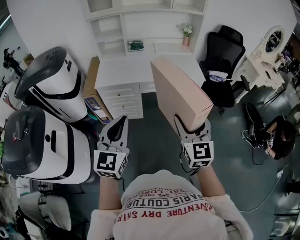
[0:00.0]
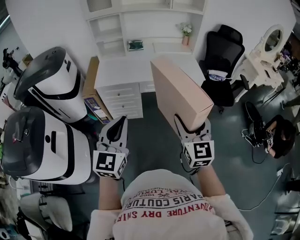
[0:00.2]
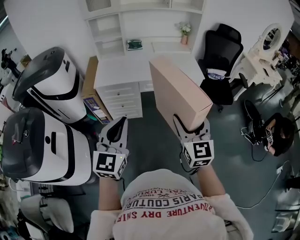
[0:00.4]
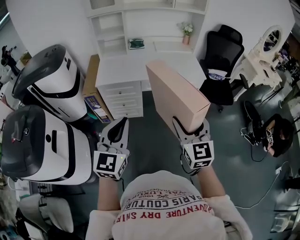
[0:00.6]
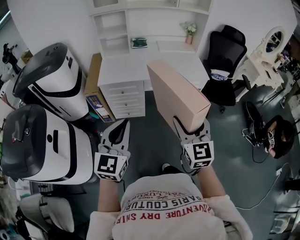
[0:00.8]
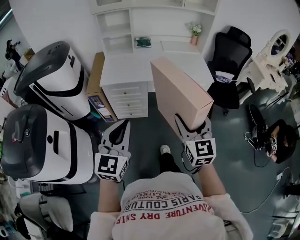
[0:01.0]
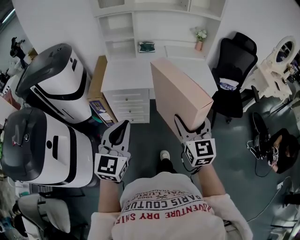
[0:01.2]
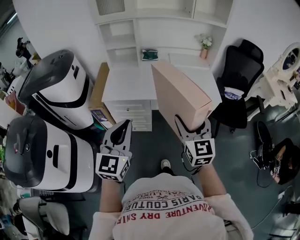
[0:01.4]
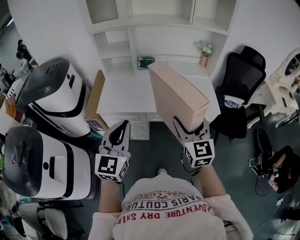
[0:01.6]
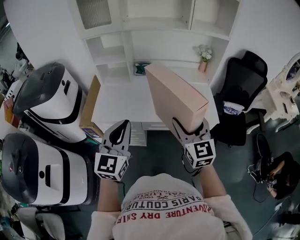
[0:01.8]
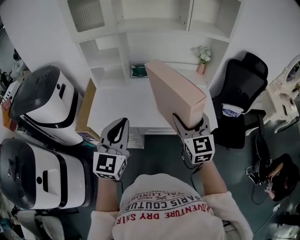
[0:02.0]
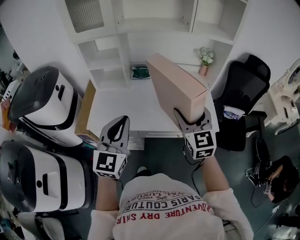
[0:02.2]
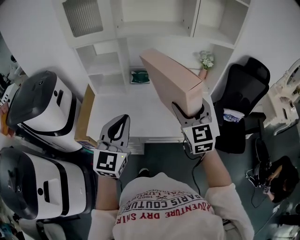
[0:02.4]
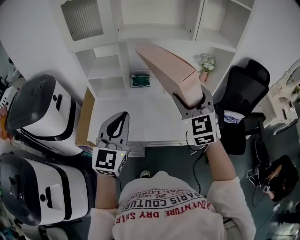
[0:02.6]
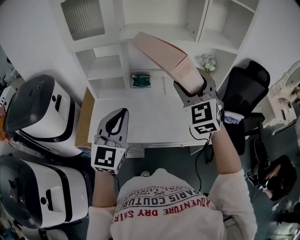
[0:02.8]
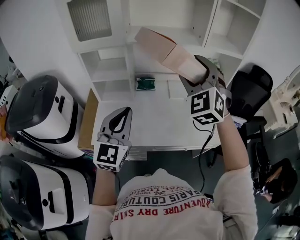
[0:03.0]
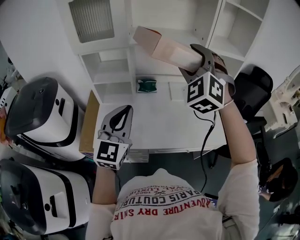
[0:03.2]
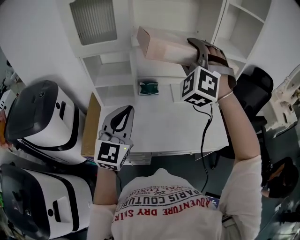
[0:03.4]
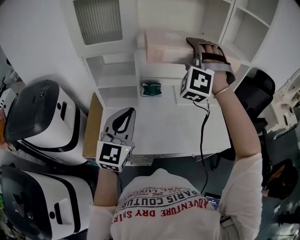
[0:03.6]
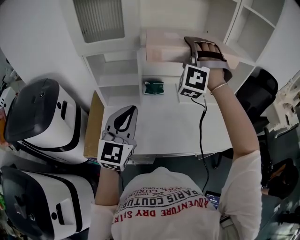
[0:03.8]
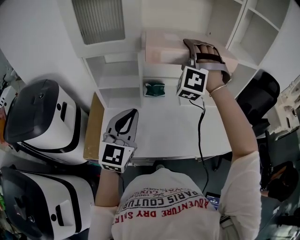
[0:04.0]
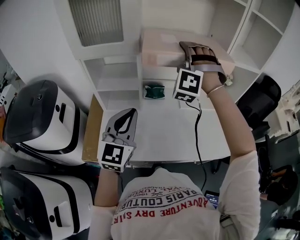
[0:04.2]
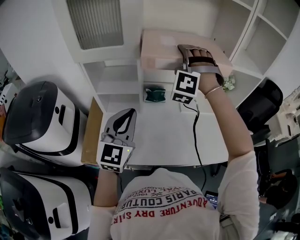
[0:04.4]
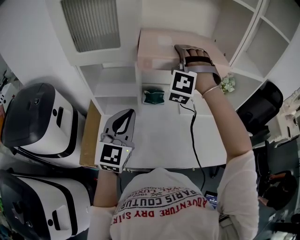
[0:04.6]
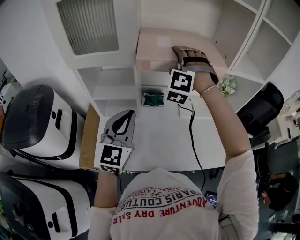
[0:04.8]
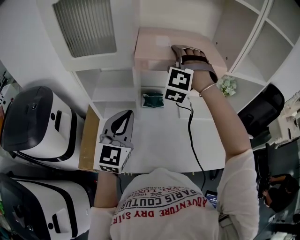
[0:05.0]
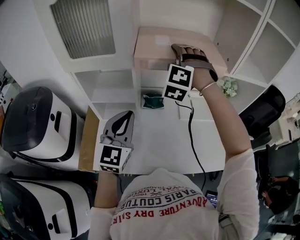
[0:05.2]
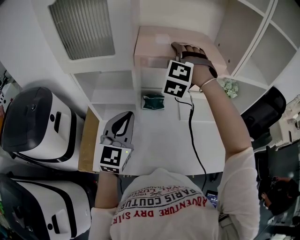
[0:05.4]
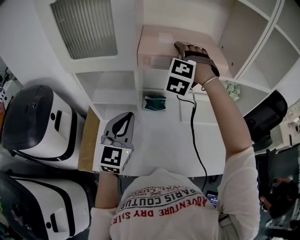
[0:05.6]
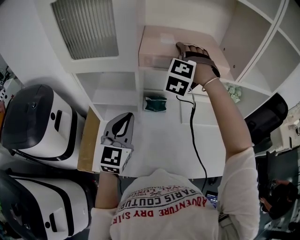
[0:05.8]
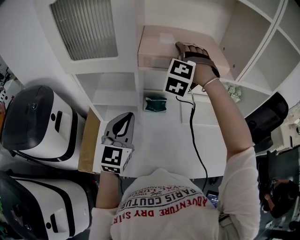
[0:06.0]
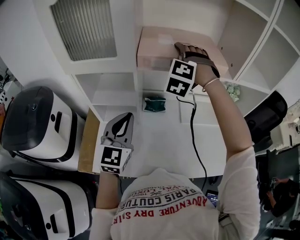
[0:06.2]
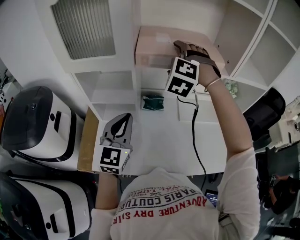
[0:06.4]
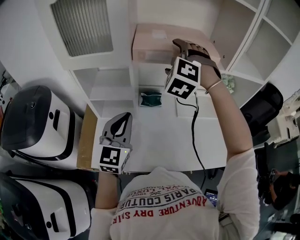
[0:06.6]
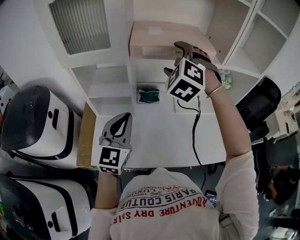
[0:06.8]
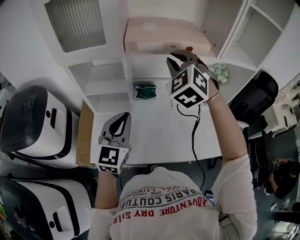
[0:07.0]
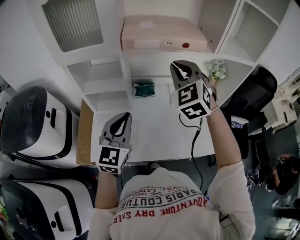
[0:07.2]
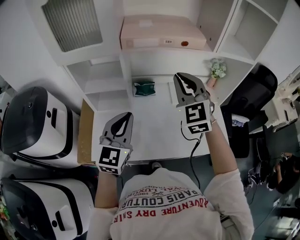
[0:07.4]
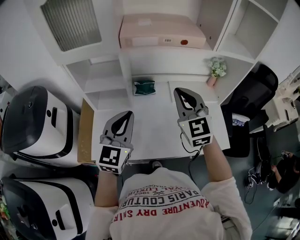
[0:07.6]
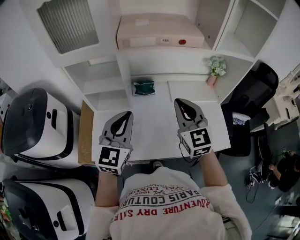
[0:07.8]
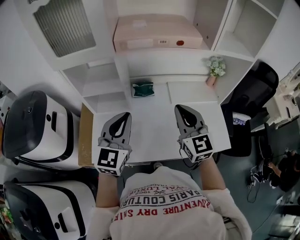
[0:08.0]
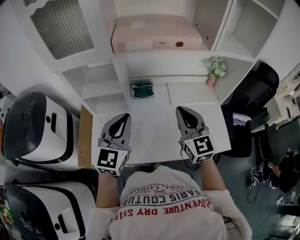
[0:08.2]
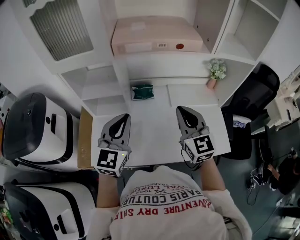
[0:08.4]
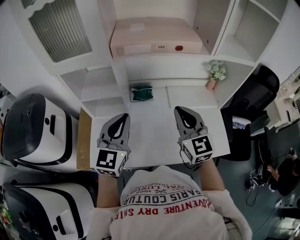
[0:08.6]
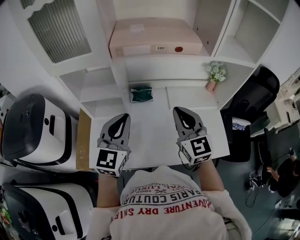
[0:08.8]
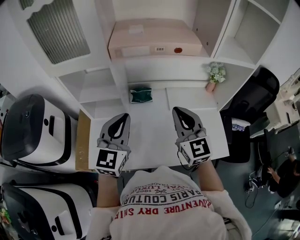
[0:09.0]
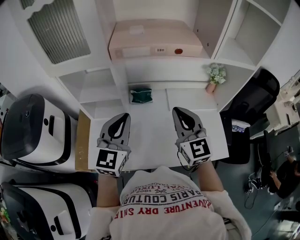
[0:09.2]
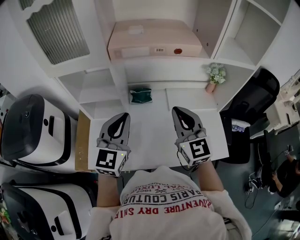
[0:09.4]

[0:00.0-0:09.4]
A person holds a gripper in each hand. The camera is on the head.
0:00.0 to 0:01.6: The two grippers go roughly 25 cm forward.
0:01.6 to 0:03.2: The right gripper goes roughly 40 cm forward and upward, and twists about 60 degrees counterclockwise, seen from behind. Meanwhile the left gripper travels forward by some 25 cm.
0:03.2 to 0:04.8: The right gripper travels forward, to the left and downward by roughly 25 cm, and rotates some 30 degrees. The left gripper travels forward and to the left by approximately 15 cm.
0:04.8 to 0:06.2: The grippers make only small movements.
0:06.2 to 0:07.8: The left gripper travels backward and to the right by about 10 cm. Meanwhile the right gripper travels backward and to the right by about 25 cm, rotates around the line of its fingers by approximately 60 degrees, clockwise from behind, and closes its fingers.
0:07.8 to 0:09.4: There are only small adjustments of the grippers.

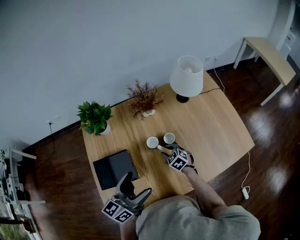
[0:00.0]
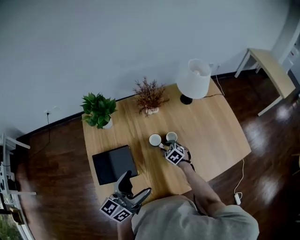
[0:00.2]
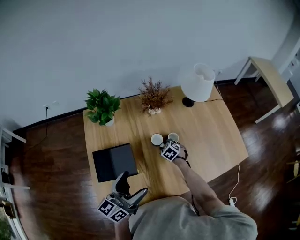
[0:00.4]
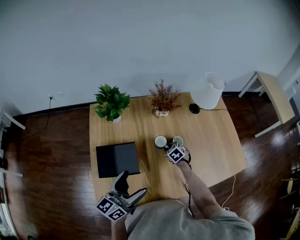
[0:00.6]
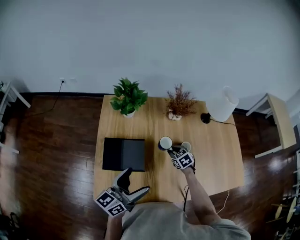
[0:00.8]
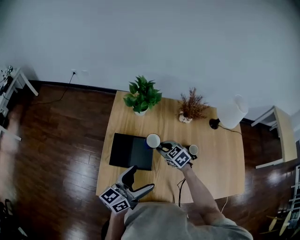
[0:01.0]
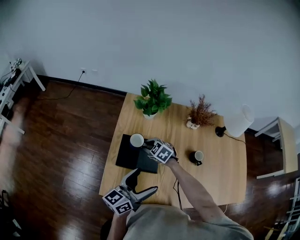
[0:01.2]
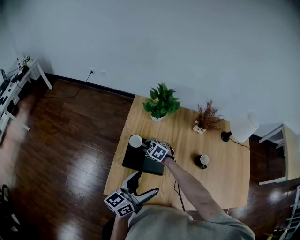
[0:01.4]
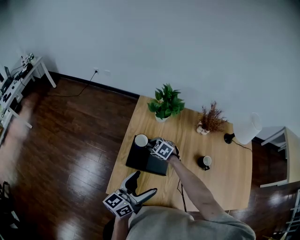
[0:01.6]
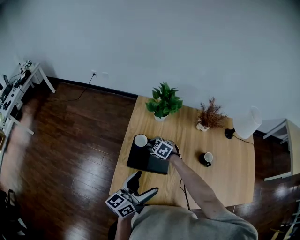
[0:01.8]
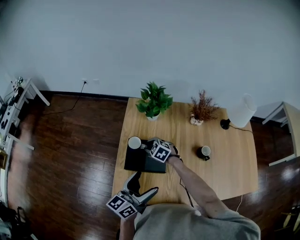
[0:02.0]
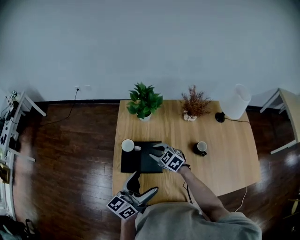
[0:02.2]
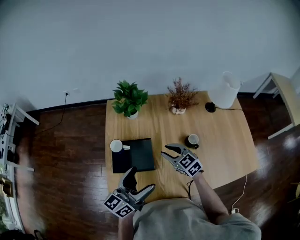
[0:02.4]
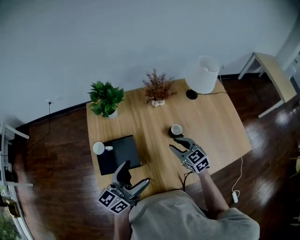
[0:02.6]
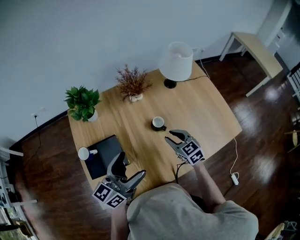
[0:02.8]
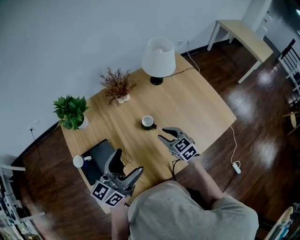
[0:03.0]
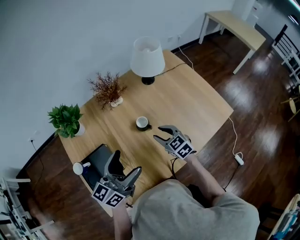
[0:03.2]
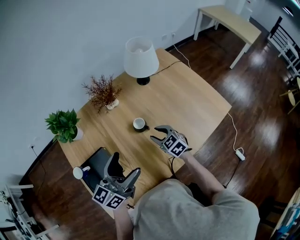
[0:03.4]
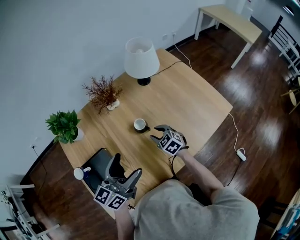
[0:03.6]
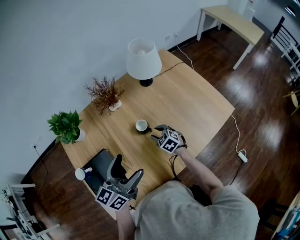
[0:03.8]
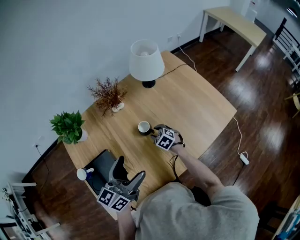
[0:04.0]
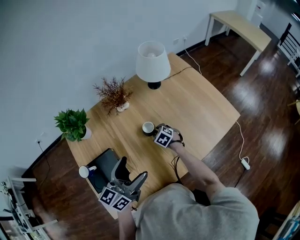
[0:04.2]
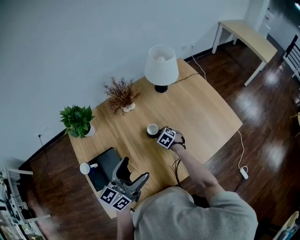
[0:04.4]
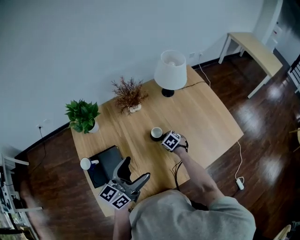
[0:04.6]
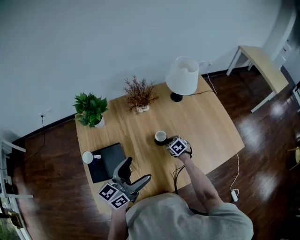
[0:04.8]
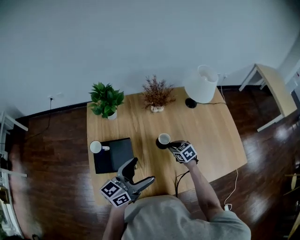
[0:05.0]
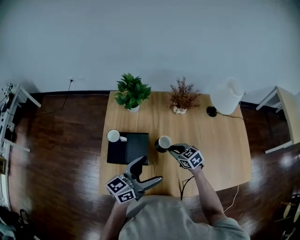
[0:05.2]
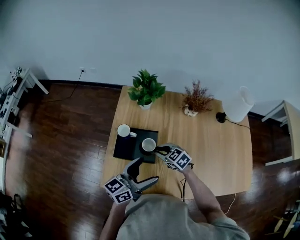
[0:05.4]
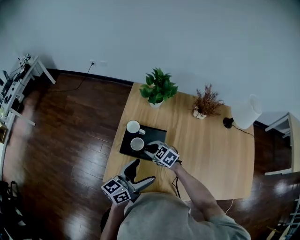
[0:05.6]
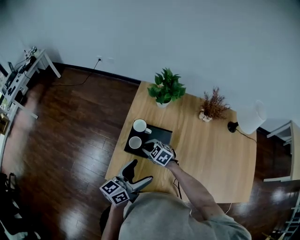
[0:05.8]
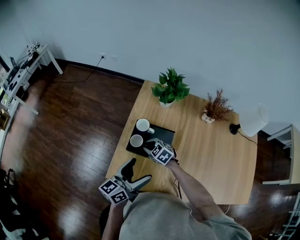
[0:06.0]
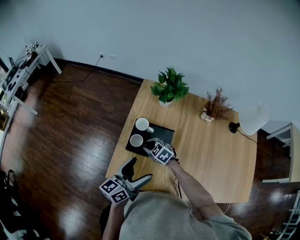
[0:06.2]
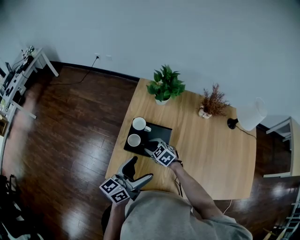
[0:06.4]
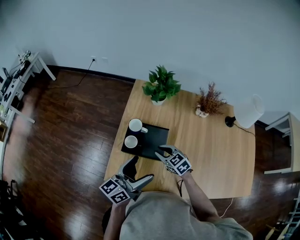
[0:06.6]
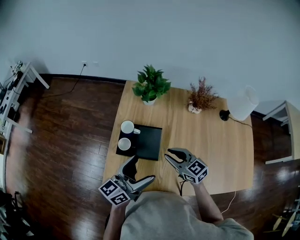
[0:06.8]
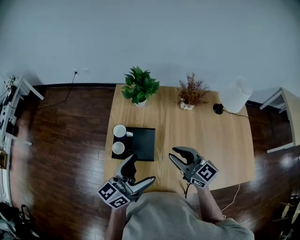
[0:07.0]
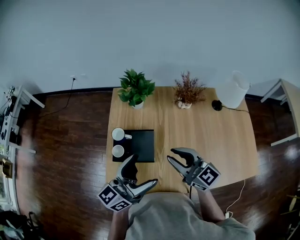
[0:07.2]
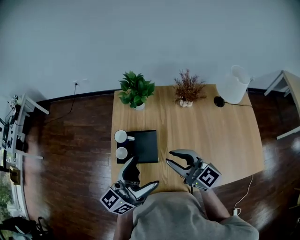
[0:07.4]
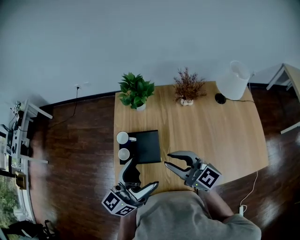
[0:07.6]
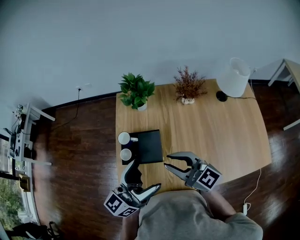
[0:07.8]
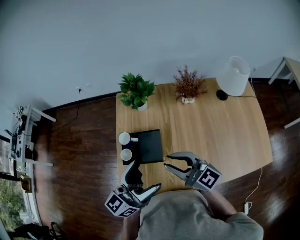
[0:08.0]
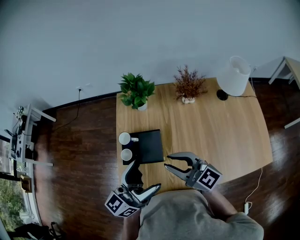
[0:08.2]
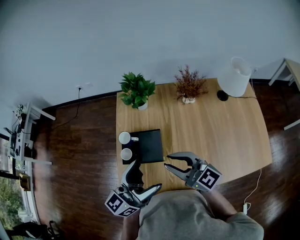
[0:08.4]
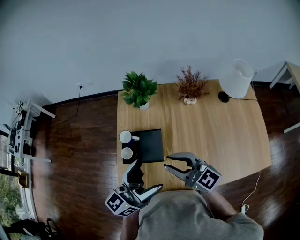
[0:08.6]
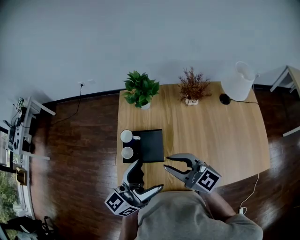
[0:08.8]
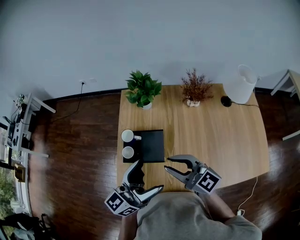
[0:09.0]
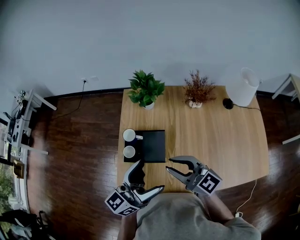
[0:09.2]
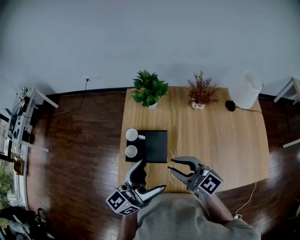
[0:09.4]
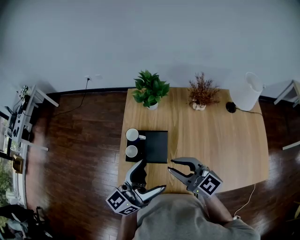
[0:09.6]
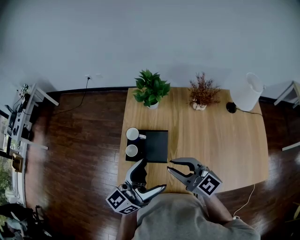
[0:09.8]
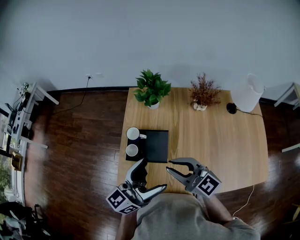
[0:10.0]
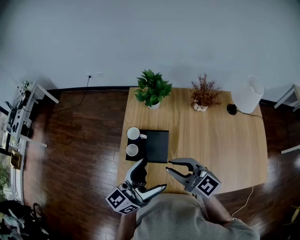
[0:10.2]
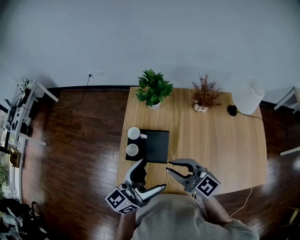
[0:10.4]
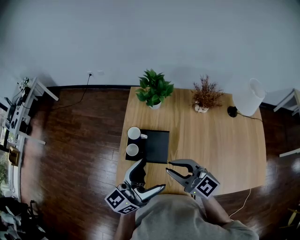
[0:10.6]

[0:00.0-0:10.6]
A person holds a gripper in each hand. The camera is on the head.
0:00.0 to 0:01.6: The left gripper ends up about 20 cm from where it was, and swivels some 20 degrees, while the right gripper goes up and down, approximately 10 cm each way, reversing 2 times, and changes its angle by roughly 40 degrees.
0:01.6 to 0:03.0: The left gripper shifts by roughly 25 cm, and swivels some 40 degrees; the right gripper changes place by some 40 cm, and rotates some 60 degrees.
0:03.0 to 0:04.6: The right gripper heads downward and forward, covering approximately 20 cm, and rotates some 30 degrees.
0:04.6 to 0:06.0: The right gripper moves some 50 cm, and swivels about 60 degrees. The left gripper changes place by roughly 25 cm, and changes its angle by roughly 40 degrees.
0:06.0 to 0:07.6: The right gripper moves upward and to the right, about 30 cm, and points its fingers roughly 50 degrees further upward. Meanwhile the left gripper shifts some 15 cm upward and to the right, and swivels about 20 degrees.
0:07.6 to 0:10.6: The grippers make only small movements.

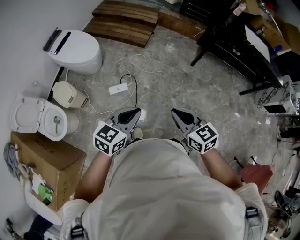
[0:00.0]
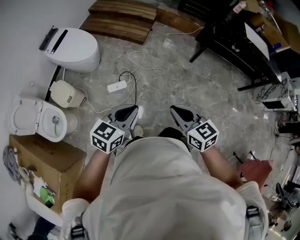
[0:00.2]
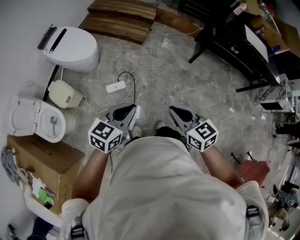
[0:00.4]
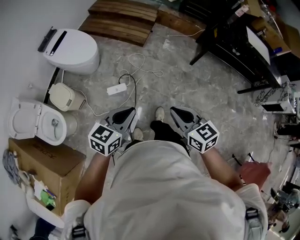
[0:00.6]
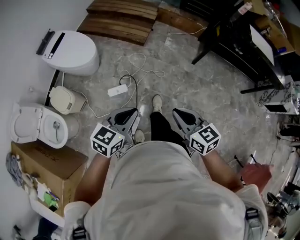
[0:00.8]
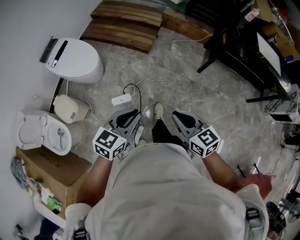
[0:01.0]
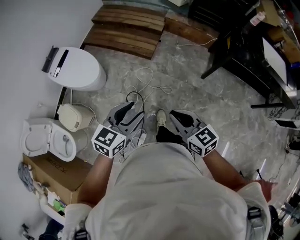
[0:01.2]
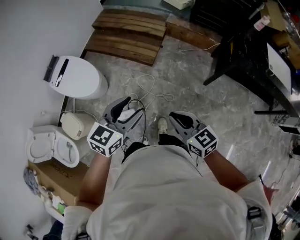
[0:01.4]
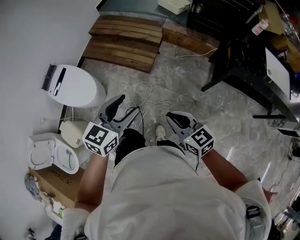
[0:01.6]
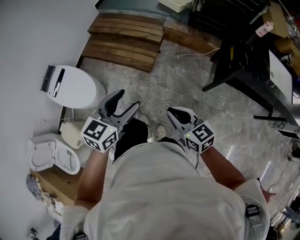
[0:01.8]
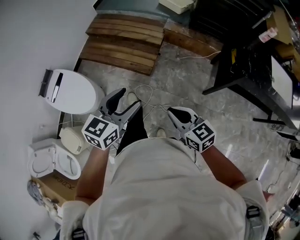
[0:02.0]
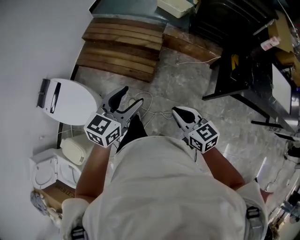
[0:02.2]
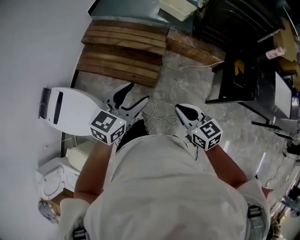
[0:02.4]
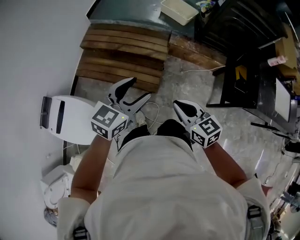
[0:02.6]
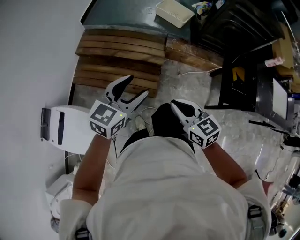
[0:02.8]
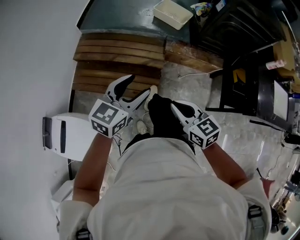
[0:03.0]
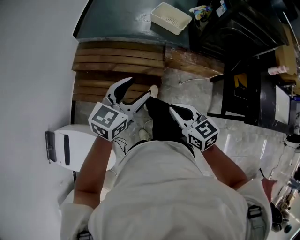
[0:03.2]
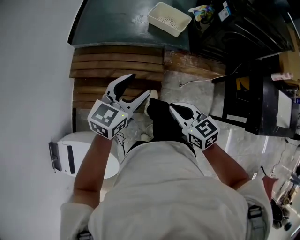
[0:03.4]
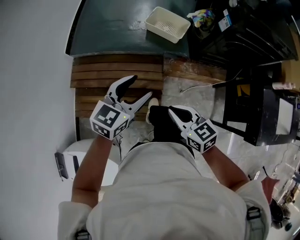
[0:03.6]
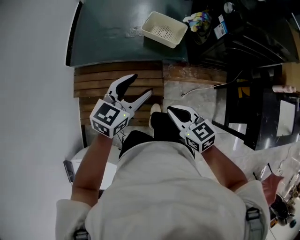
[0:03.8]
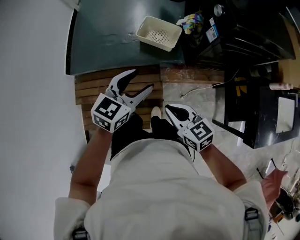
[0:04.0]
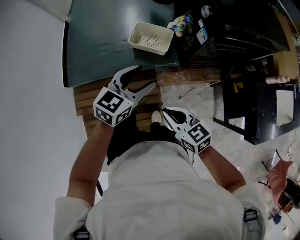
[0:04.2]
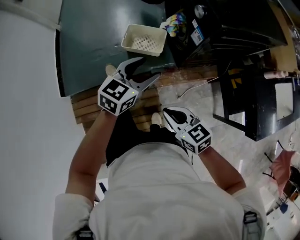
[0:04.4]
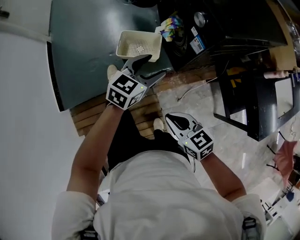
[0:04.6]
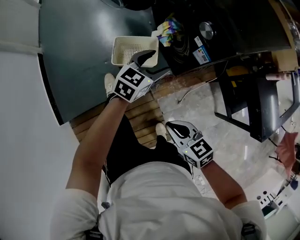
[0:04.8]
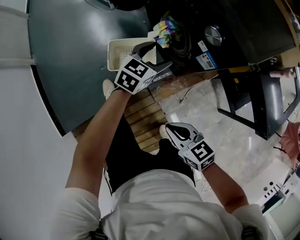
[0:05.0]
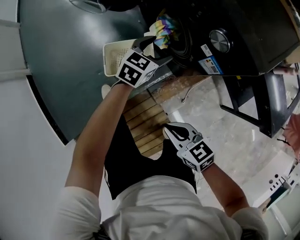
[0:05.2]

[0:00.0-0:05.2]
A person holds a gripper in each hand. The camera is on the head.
0:00.0 to 0:01.8: Both grippers are carried forward, some 50 cm. The left gripper opens up.
0:01.8 to 0:03.4: The pair of grippers is taken forward, approximately 60 cm.
0:03.4 to 0:05.2: Both grippers are carried roughly 60 cm. The right gripper swivels about 30 degrees. Meanwhile the left gripper turns by some 50 degrees.
